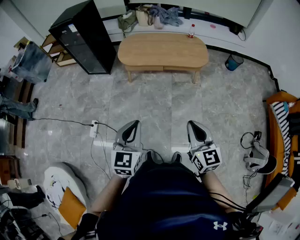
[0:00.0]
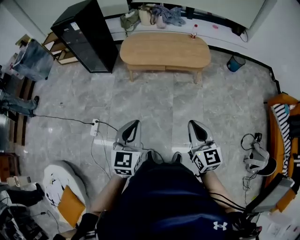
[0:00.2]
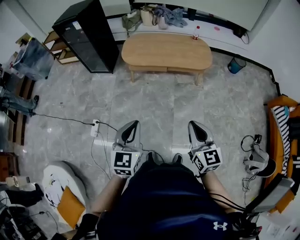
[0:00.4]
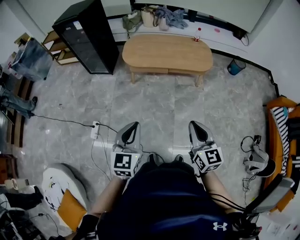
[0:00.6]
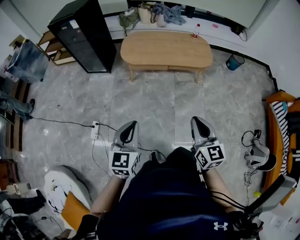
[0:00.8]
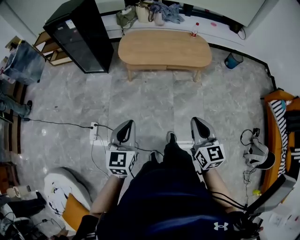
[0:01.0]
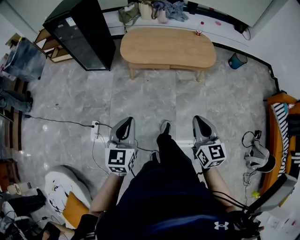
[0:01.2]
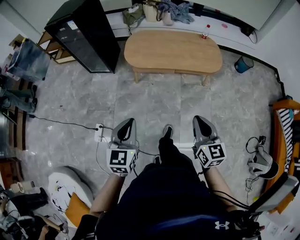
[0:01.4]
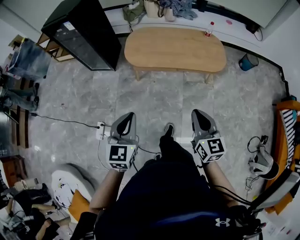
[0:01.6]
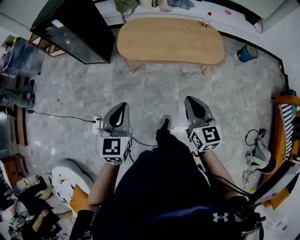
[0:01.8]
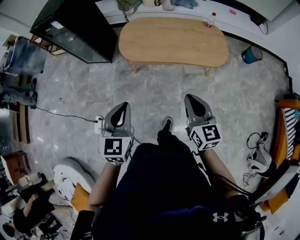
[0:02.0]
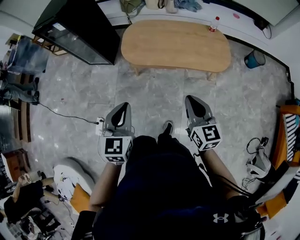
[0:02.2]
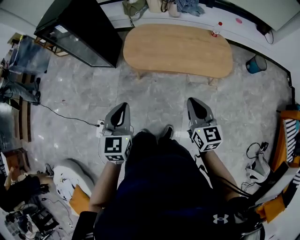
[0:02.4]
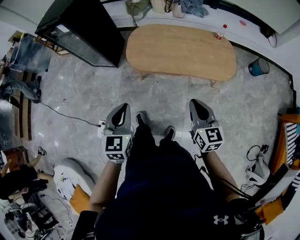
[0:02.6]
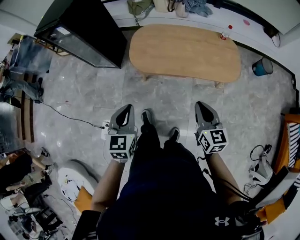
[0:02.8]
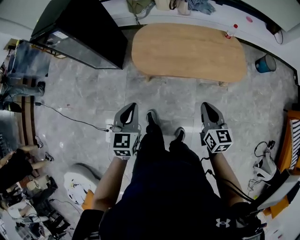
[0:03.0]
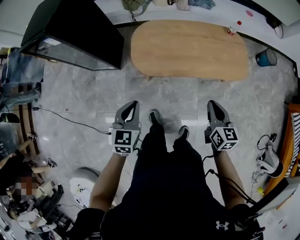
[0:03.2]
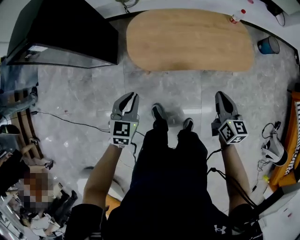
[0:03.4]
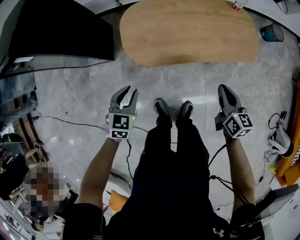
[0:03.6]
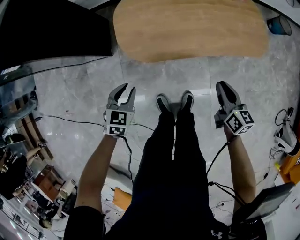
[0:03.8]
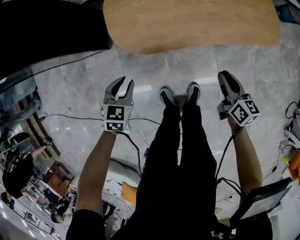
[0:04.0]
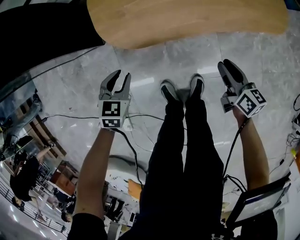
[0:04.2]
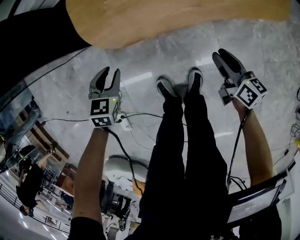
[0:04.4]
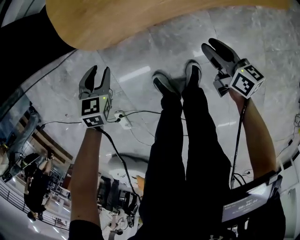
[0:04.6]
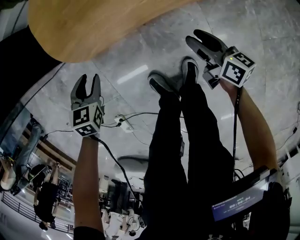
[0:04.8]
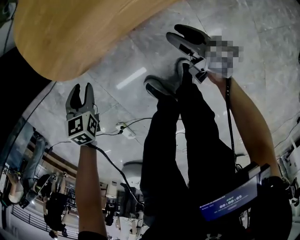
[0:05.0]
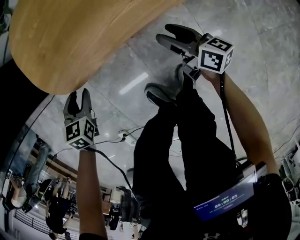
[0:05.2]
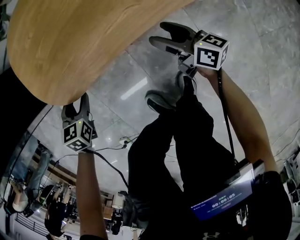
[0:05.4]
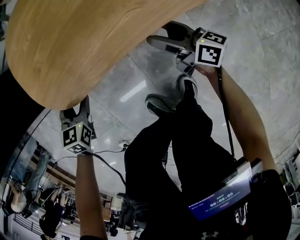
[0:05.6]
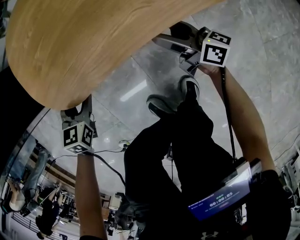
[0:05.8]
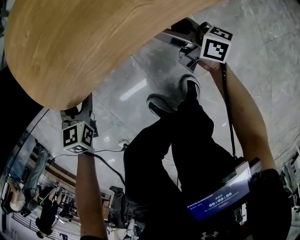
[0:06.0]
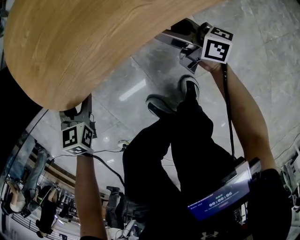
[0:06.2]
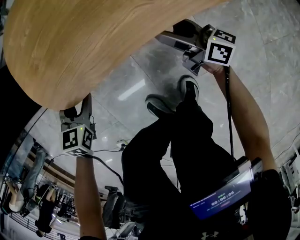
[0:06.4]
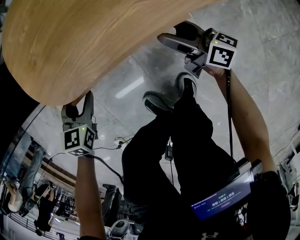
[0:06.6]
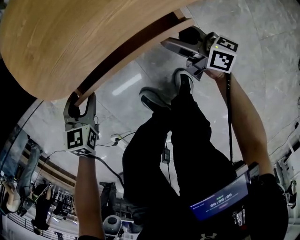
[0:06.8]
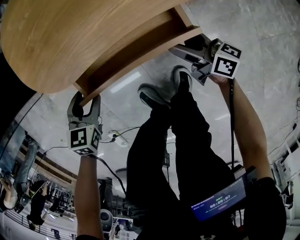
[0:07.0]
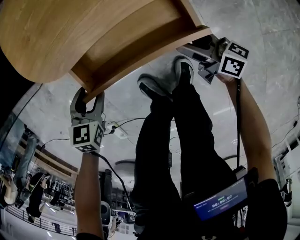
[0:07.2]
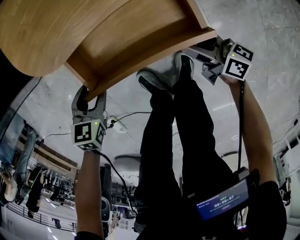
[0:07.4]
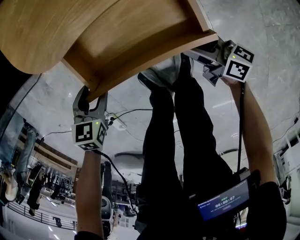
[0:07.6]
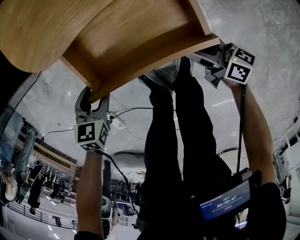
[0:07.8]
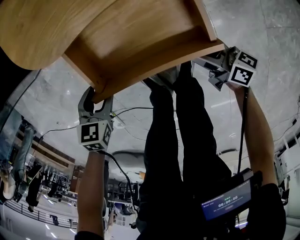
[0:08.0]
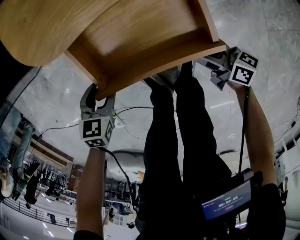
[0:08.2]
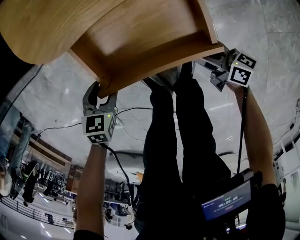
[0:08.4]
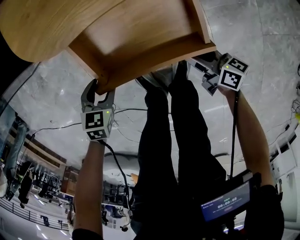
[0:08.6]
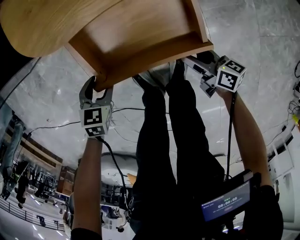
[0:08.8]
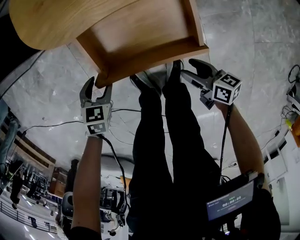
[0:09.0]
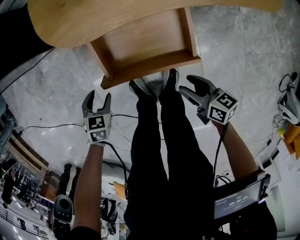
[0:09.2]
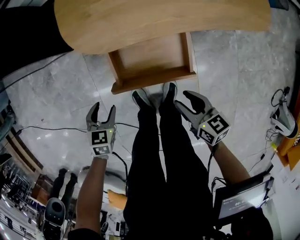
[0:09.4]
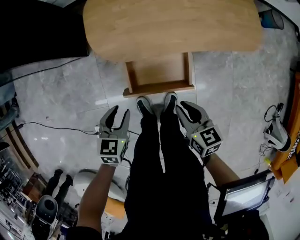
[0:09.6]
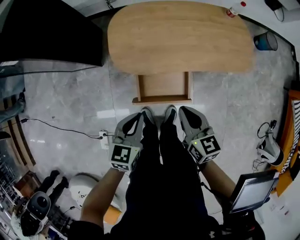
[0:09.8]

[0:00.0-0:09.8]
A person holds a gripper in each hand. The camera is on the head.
0:00.0 to 0:01.4: Both grippers travel together forward and to the left, approximately 20 cm.
0:01.4 to 0:02.8: Both grippers move forward, roughly 25 cm.
0:02.8 to 0:04.2: The left gripper goes roughly 50 cm downward and forward, swivels about 40 degrees, and opens. Meanwhile the right gripper moves downward, about 40 cm, and rotates about 30 degrees.
0:04.2 to 0:05.6: Both grippers travel together downward and forward, some 20 cm. The left gripper opens; the right gripper swivels about 20 degrees, and opens.
0:05.6 to 0:07.0: Both grippers move backward, roughly 10 cm.
0:07.0 to 0:08.4: Both grippers move backward, some 10 cm.
0:08.4 to 0:09.8: The two grippers go about 50 cm upward. The right gripper changes its angle by roughly 40 degrees, and closes up. Meanwhile the left gripper tilts its fingers roughly 30 degrees upward, and closes up.

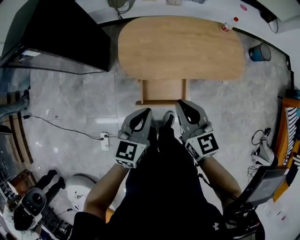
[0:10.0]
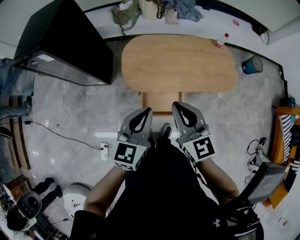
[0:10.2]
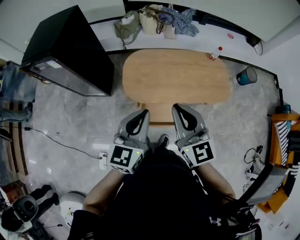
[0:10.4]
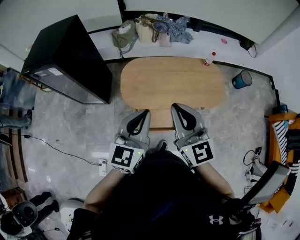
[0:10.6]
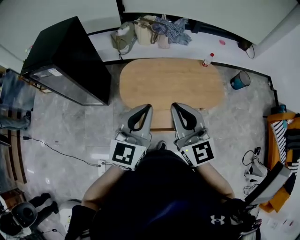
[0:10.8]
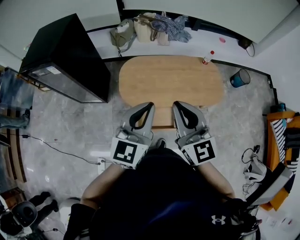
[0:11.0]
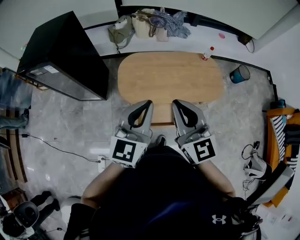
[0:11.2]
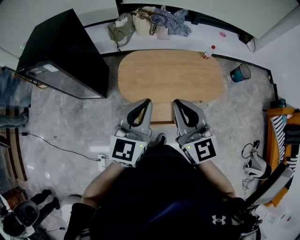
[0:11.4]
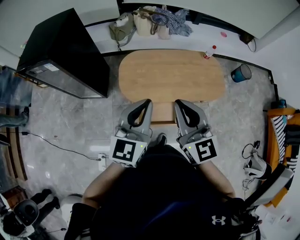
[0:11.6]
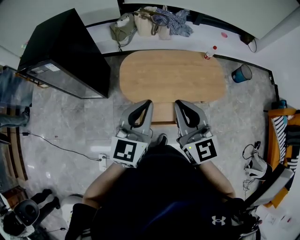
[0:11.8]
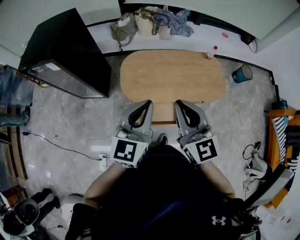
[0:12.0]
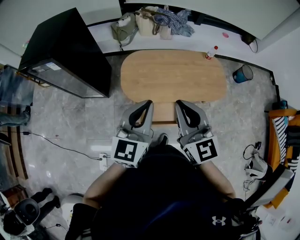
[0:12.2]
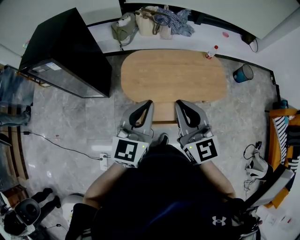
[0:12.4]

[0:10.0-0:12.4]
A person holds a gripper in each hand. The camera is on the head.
0:10.0 to 0:11.2: Both grippers move upward, approximately 25 cm. The right gripper changes its angle by approximately 20 degrees; the left gripper swivels some 20 degrees.
0:11.2 to 0:12.4: The grippers stay close to where they were, moving slightly.

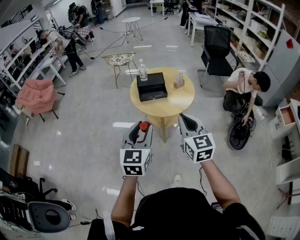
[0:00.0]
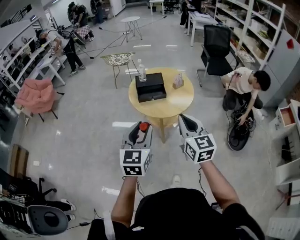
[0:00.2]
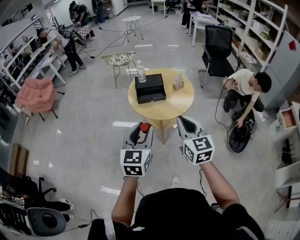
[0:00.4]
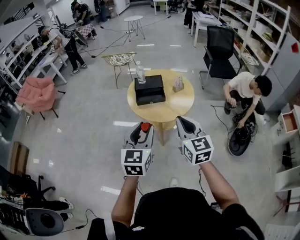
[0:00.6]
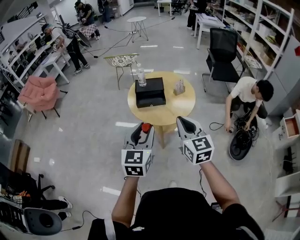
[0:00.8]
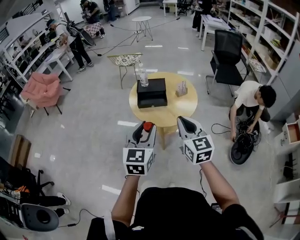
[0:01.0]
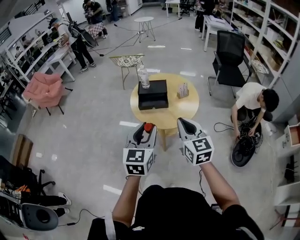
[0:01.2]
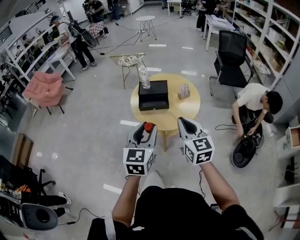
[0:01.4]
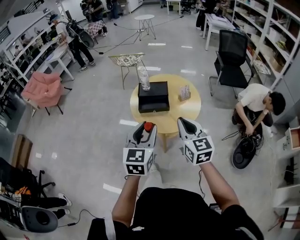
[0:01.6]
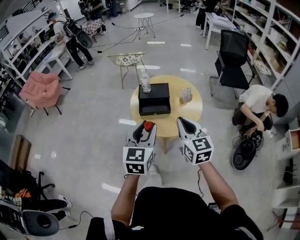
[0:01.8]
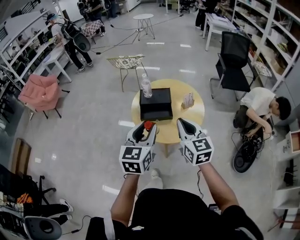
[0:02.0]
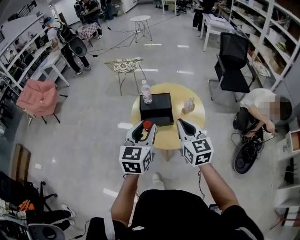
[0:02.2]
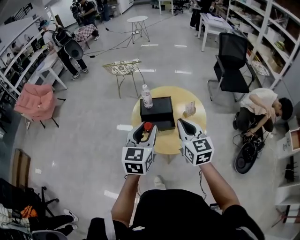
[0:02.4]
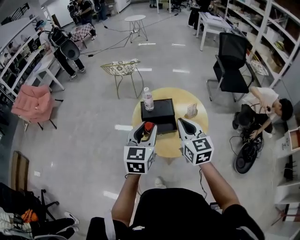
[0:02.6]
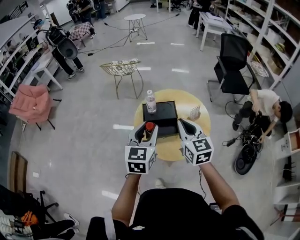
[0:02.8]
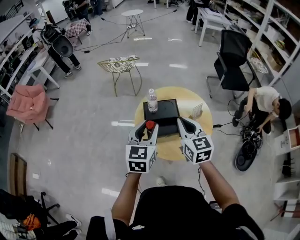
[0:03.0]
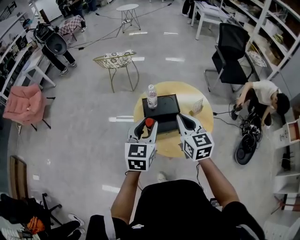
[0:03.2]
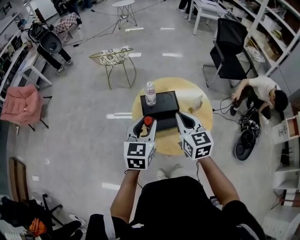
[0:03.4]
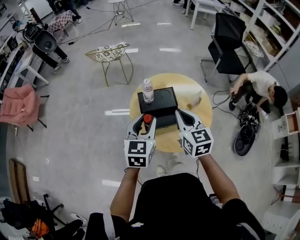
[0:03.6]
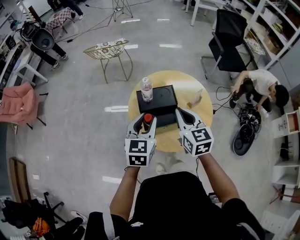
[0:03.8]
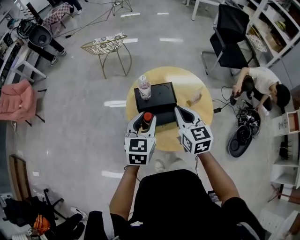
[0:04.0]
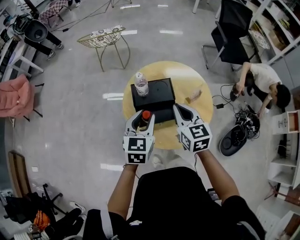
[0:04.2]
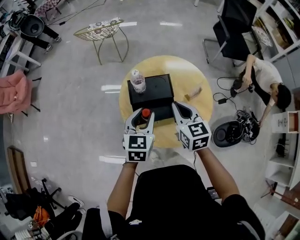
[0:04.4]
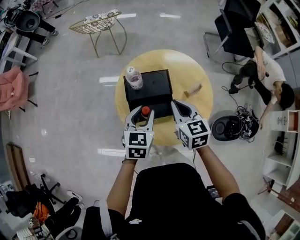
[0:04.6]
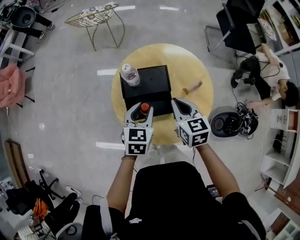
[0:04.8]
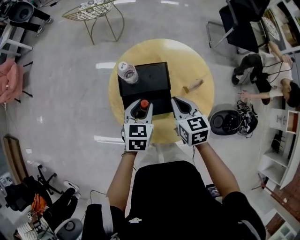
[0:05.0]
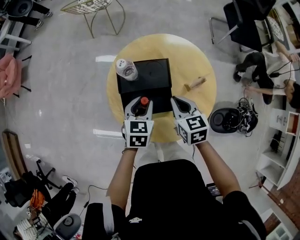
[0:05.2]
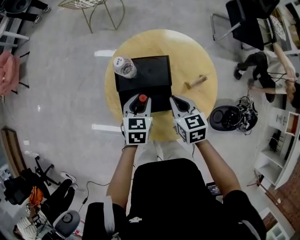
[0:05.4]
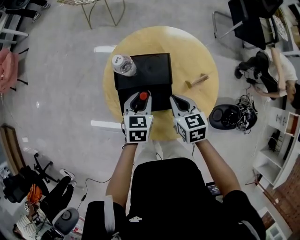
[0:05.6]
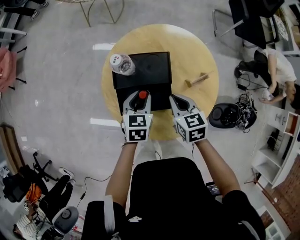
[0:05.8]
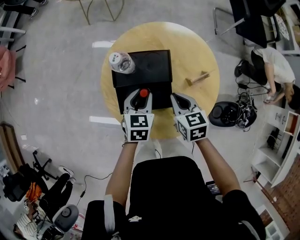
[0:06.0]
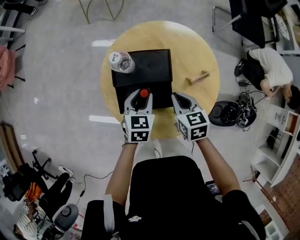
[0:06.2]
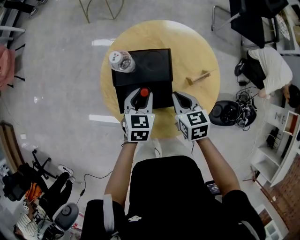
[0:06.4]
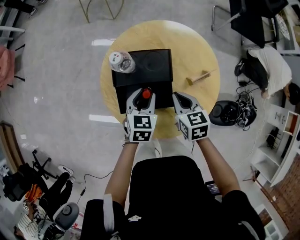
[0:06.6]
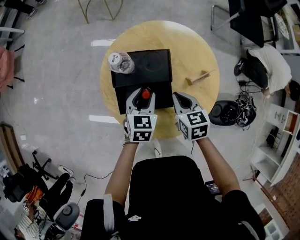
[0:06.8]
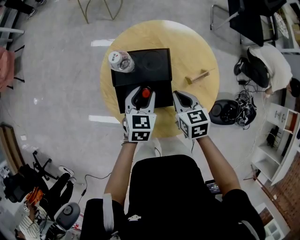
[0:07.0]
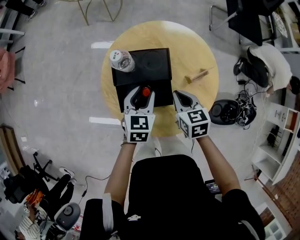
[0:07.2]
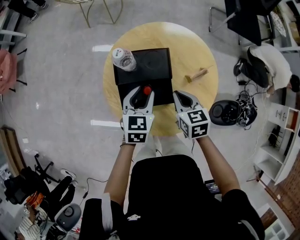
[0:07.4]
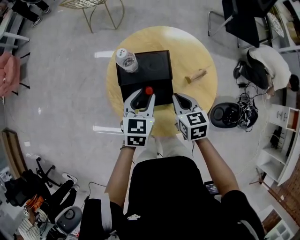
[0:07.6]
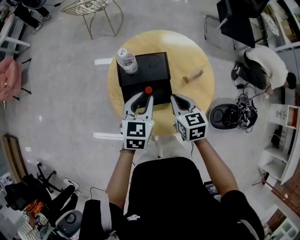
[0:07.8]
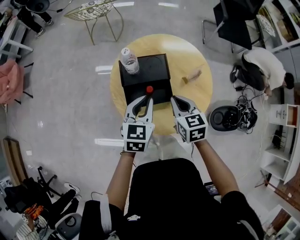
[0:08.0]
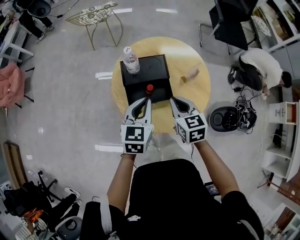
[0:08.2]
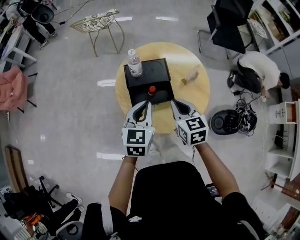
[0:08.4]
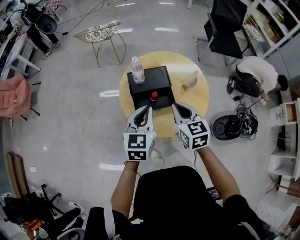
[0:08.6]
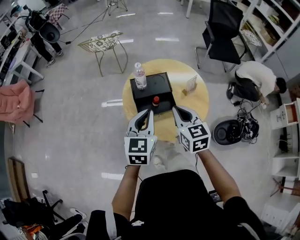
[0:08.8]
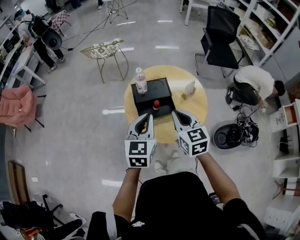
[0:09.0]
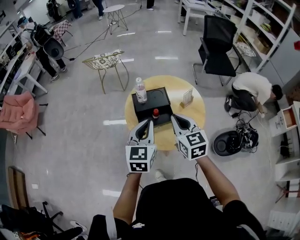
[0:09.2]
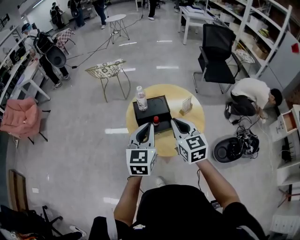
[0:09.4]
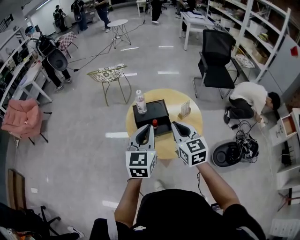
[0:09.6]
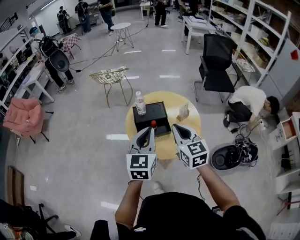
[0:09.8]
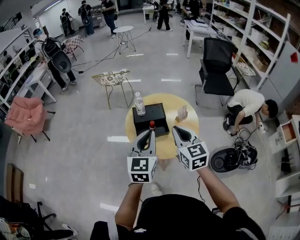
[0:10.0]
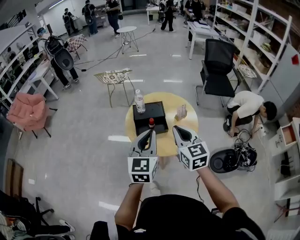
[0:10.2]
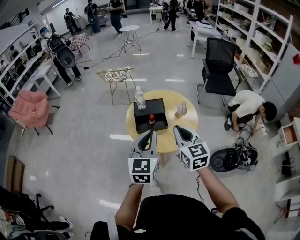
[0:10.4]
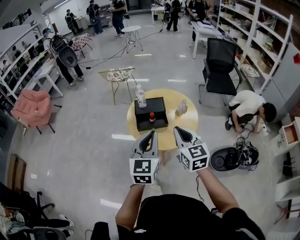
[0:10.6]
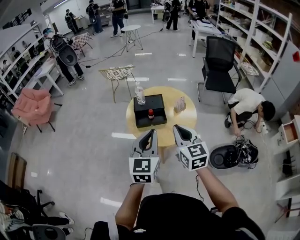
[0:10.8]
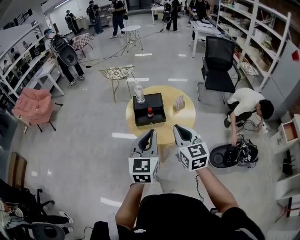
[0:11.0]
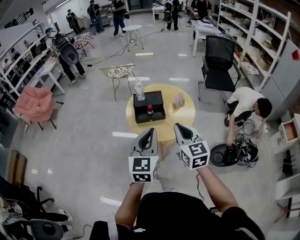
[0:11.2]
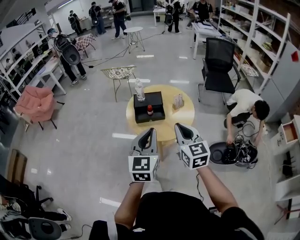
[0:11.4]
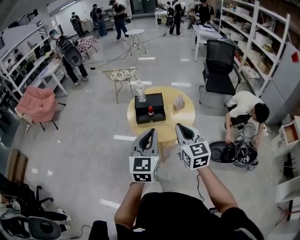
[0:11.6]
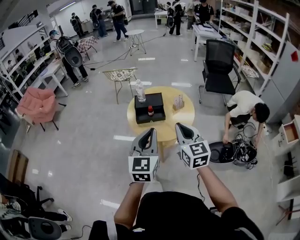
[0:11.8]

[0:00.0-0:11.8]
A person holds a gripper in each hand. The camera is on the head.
0:00.0 to 0:01.4: Both grippers move forward and to the right, some 15 cm.
0:01.4 to 0:03.0: The two grippers go some 30 cm forward.
0:03.0 to 0:04.4: Both grippers travel together downward and forward, about 15 cm.
0:04.4 to 0:06.0: The two grippers go about 15 cm downward. The right gripper turns by roughly 20 degrees.
0:06.0 to 0:07.4: The left gripper shifts approximately 5 cm upward.
0:07.4 to 0:08.8: Both grippers travel together upward and backward, about 25 cm. The right gripper rotates about 20 degrees, while the left gripper closes its fingers.
0:08.8 to 0:10.4: The grippers both shift backward, upward and to the right by roughly 20 cm.
0:10.4 to 0:11.8: Both grippers move backward, approximately 10 cm.
